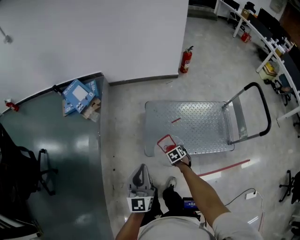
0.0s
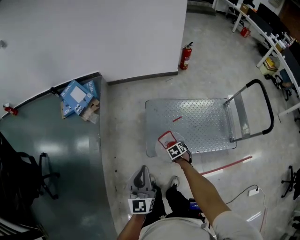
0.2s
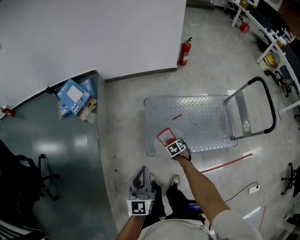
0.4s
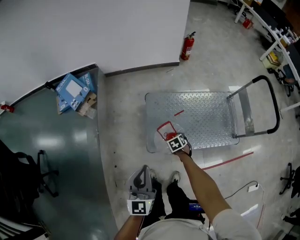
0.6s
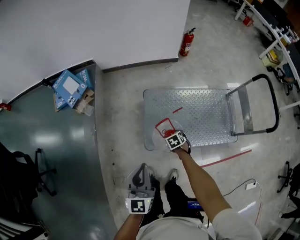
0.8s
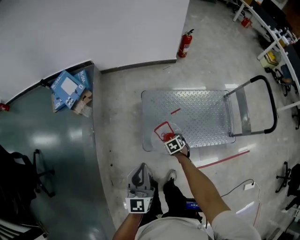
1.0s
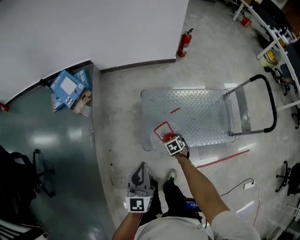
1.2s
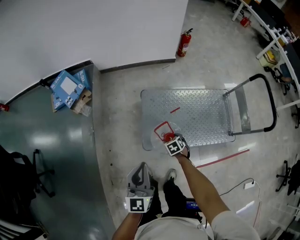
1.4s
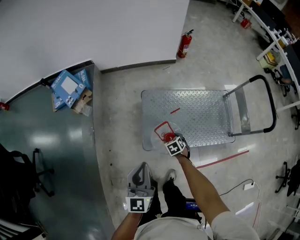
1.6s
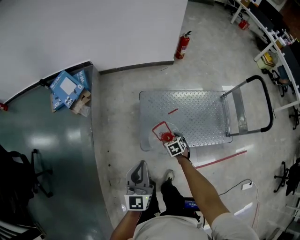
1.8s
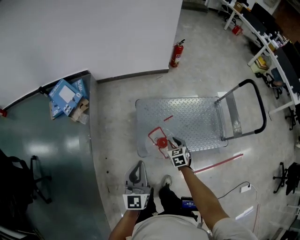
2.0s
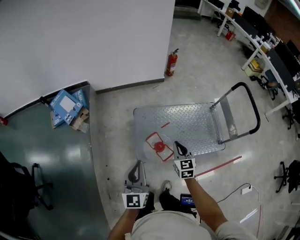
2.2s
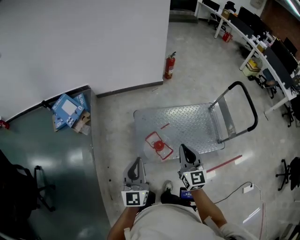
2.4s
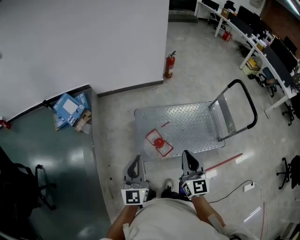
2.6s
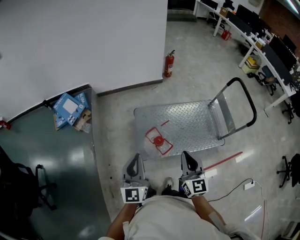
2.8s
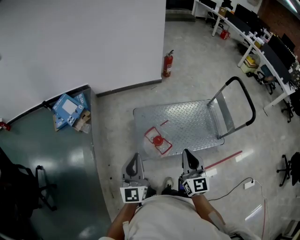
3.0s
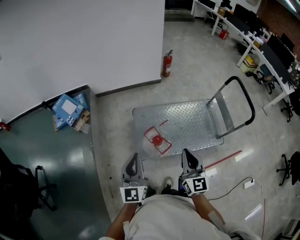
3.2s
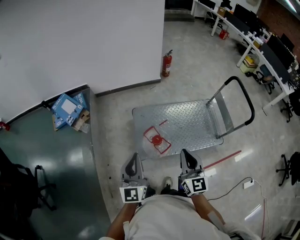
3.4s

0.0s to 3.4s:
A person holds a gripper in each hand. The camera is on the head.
0.0s to 1.6s: Both grippers travel together forward, approximately 5 cm.
1.6s to 3.4s: The left gripper moves upward, some 10 cm, while the right gripper travels upward by about 40 cm, points its fingers approximately 60 degrees further upward, and closes its fingers.

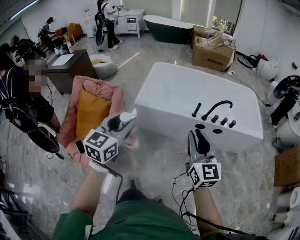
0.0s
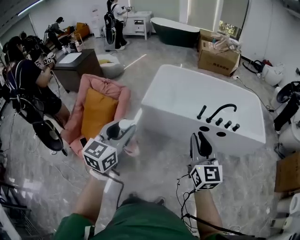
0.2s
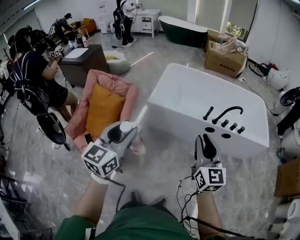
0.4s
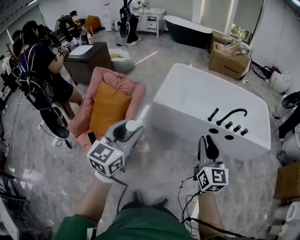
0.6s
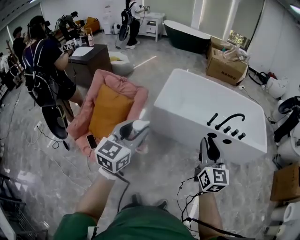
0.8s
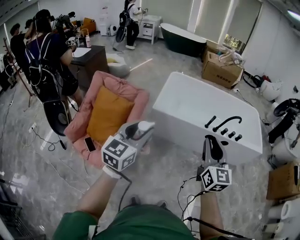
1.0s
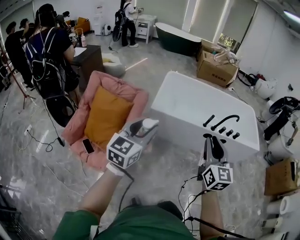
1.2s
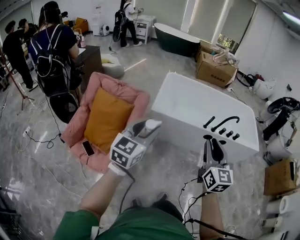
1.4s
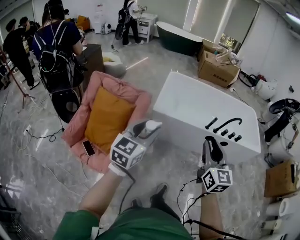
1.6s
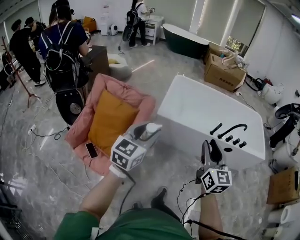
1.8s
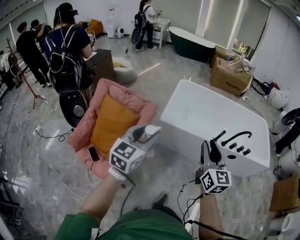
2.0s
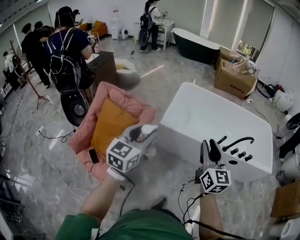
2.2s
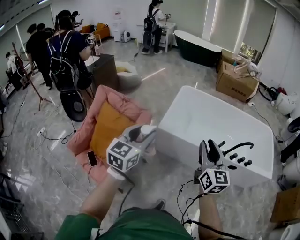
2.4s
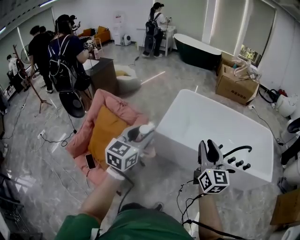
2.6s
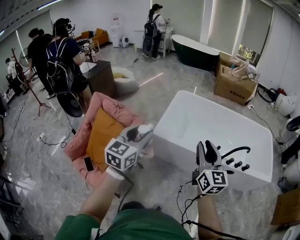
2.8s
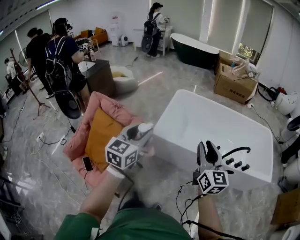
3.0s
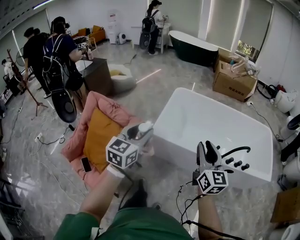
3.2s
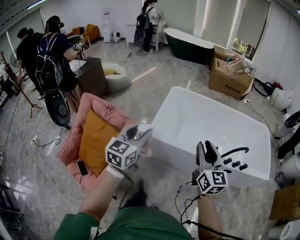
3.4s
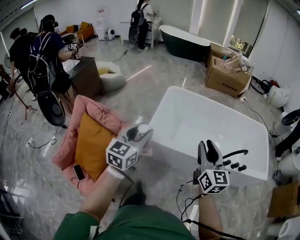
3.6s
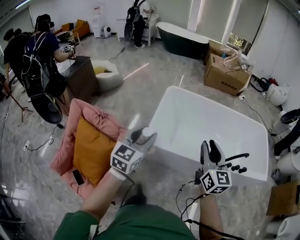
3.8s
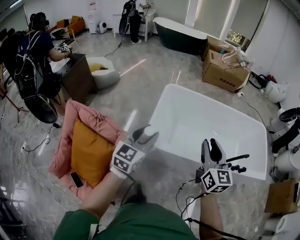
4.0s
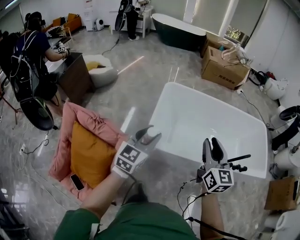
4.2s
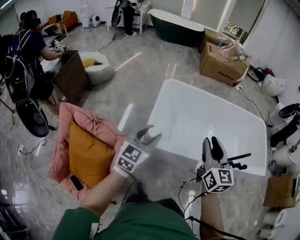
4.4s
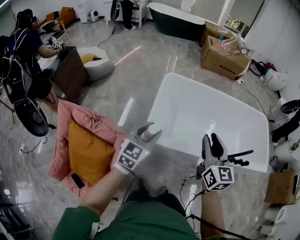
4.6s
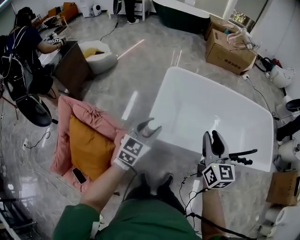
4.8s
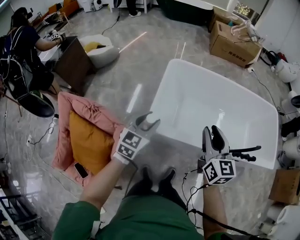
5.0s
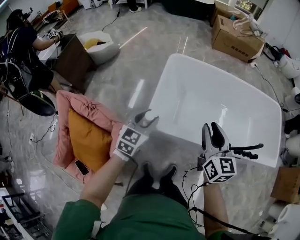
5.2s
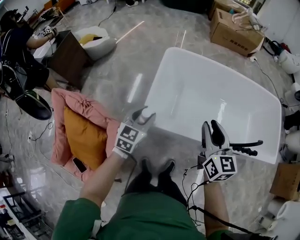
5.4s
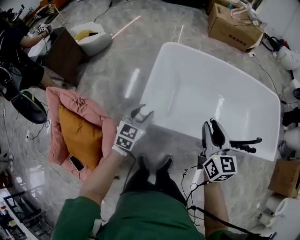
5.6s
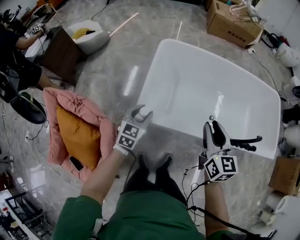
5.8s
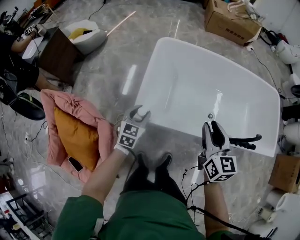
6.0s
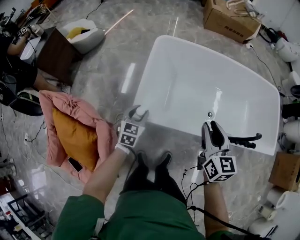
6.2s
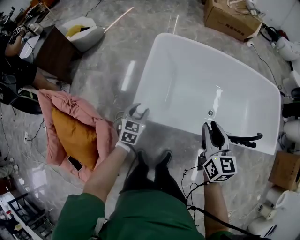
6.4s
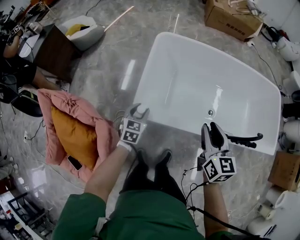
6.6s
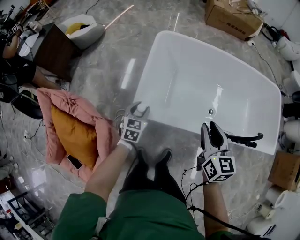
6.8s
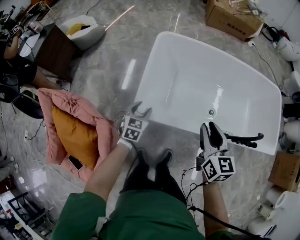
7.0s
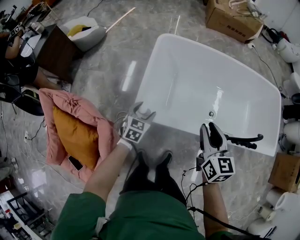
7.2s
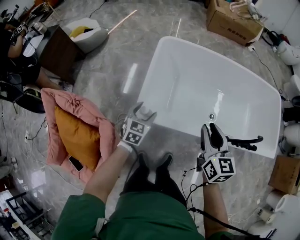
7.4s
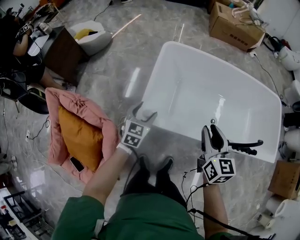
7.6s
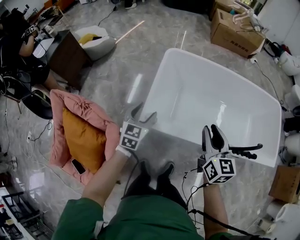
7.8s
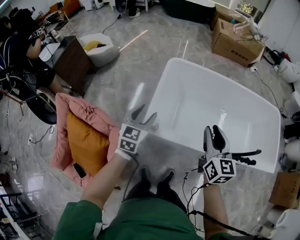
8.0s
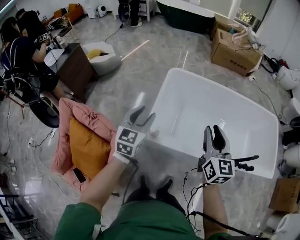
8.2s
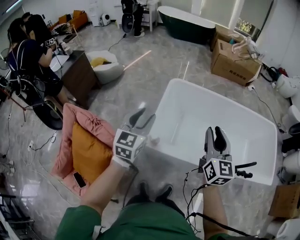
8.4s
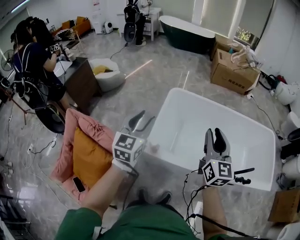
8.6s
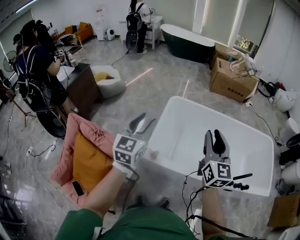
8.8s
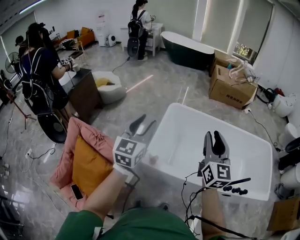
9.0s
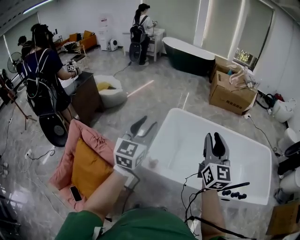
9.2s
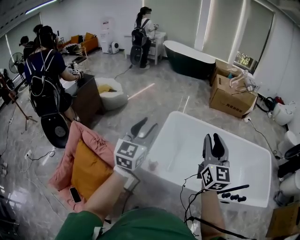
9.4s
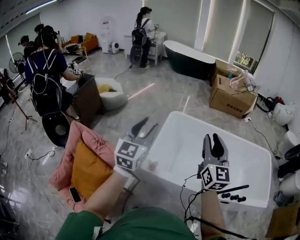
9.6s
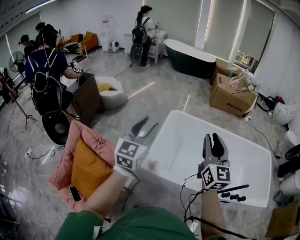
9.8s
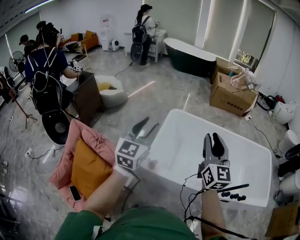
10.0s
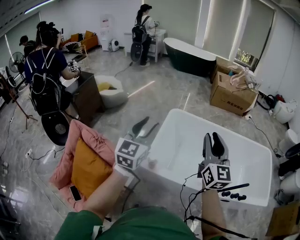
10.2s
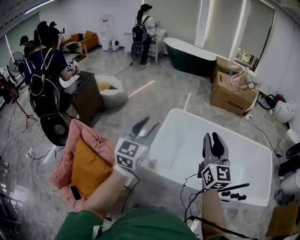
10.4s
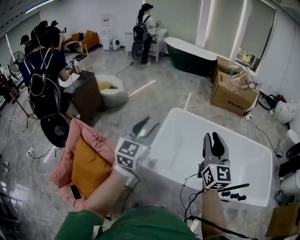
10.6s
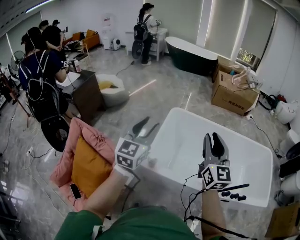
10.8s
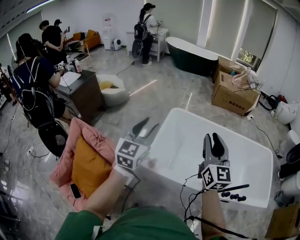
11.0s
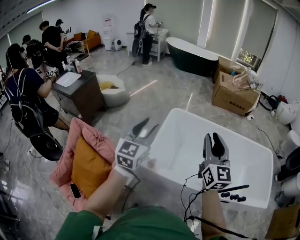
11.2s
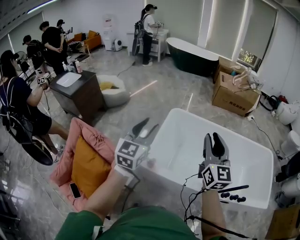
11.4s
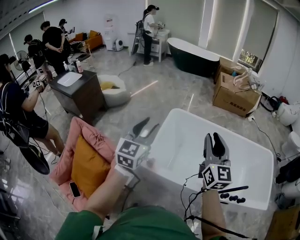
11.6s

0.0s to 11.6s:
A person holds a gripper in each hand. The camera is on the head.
0.0s to 1.4s: Both grippers travel together to the left, roughly 20 cm.
1.4s to 2.8s: Both grippers move forward, roughly 25 cm.
2.8s to 4.4s: Both grippers travel together forward, roughly 35 cm.
4.4s to 5.8s: The right gripper heads downward, forward and to the right, covering roughly 20 cm. Meanwhile the left gripper shifts some 25 cm downward and forward.
5.8s to 7.2s: The left gripper moves downward, about 10 cm, and opens.
7.2s to 8.8s: The left gripper moves upward, some 40 cm, points its fingers some 30 degrees further upward, and closes, while the right gripper heads upward, covering about 25 cm, and rotates about 30 degrees.
8.8s to 10.2s: The right gripper moves roughly 5 cm; the left gripper is displaced upward by roughly 5 cm.
10.2s to 11.6s: There are only small adjustments of the grippers.

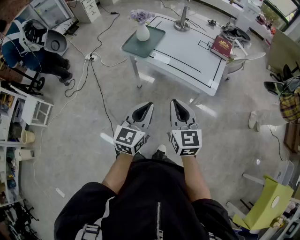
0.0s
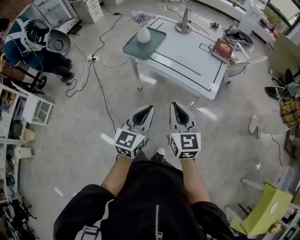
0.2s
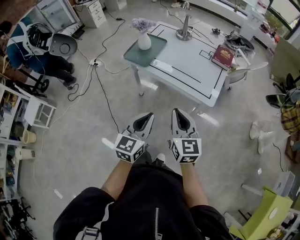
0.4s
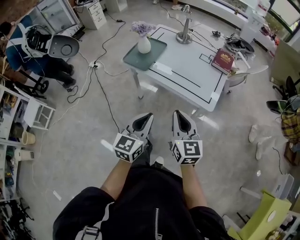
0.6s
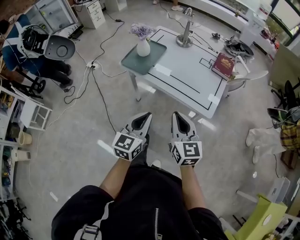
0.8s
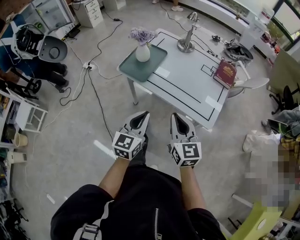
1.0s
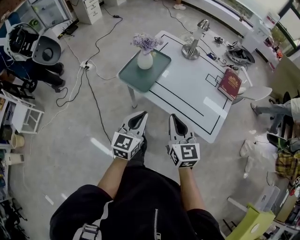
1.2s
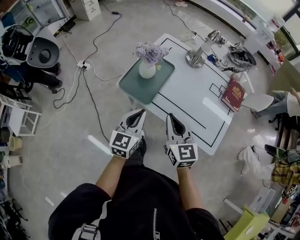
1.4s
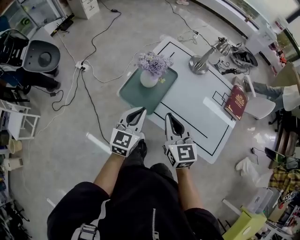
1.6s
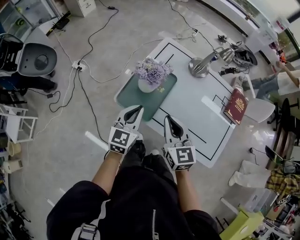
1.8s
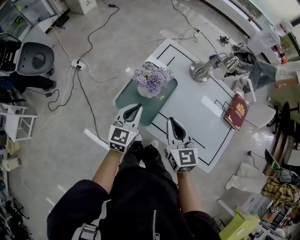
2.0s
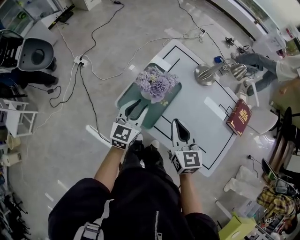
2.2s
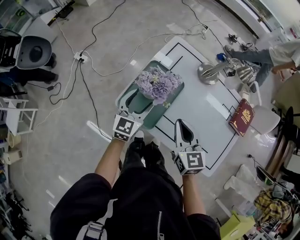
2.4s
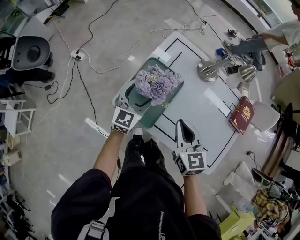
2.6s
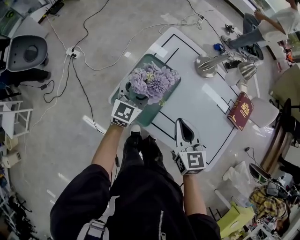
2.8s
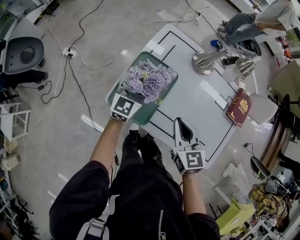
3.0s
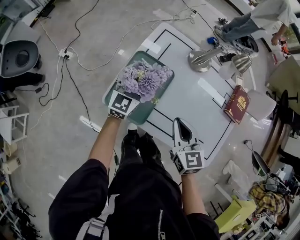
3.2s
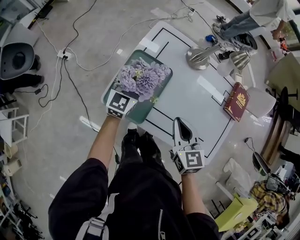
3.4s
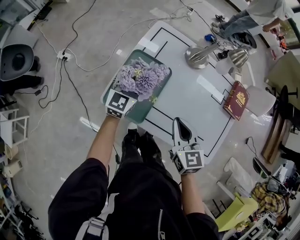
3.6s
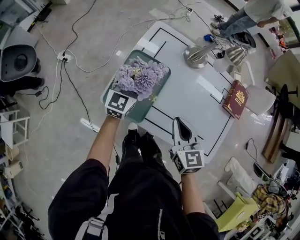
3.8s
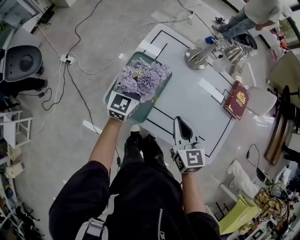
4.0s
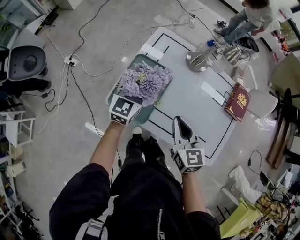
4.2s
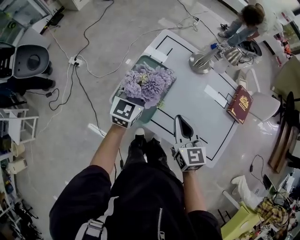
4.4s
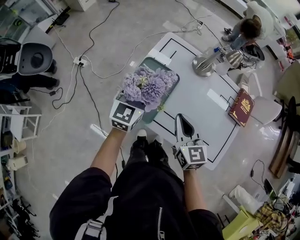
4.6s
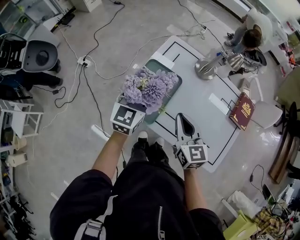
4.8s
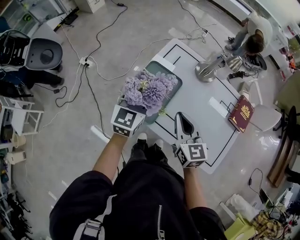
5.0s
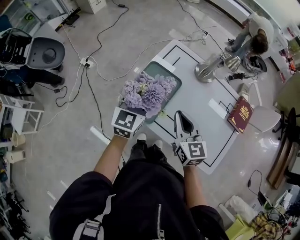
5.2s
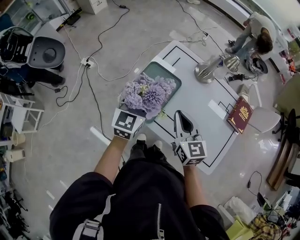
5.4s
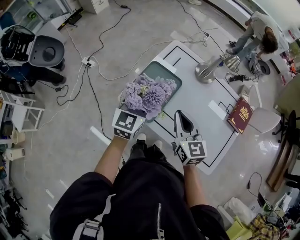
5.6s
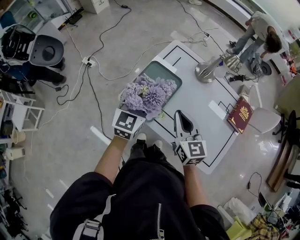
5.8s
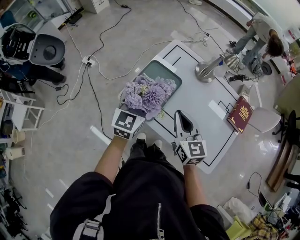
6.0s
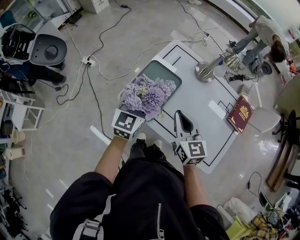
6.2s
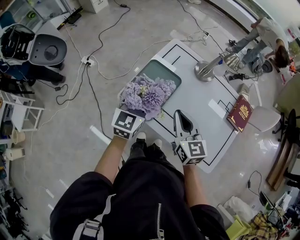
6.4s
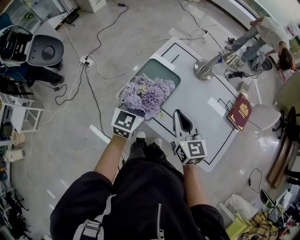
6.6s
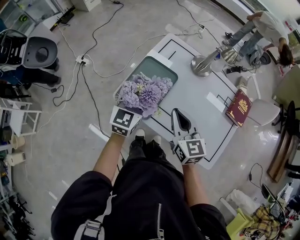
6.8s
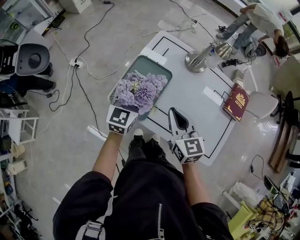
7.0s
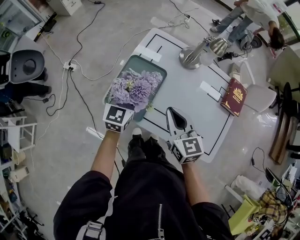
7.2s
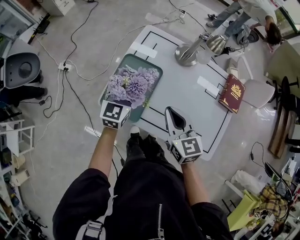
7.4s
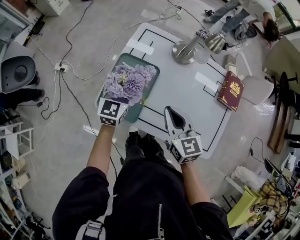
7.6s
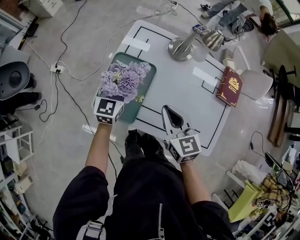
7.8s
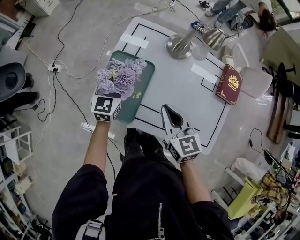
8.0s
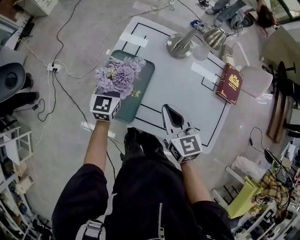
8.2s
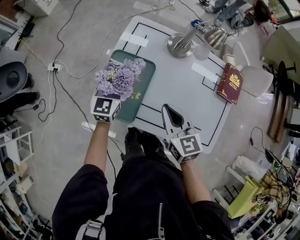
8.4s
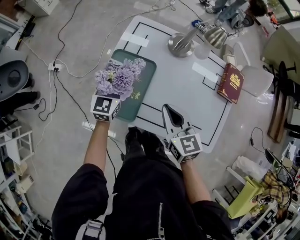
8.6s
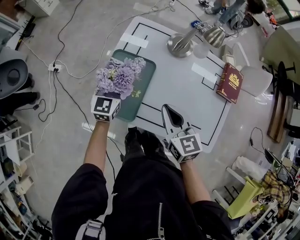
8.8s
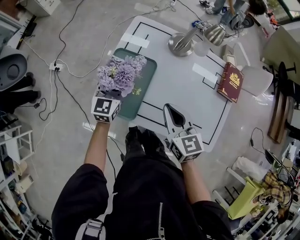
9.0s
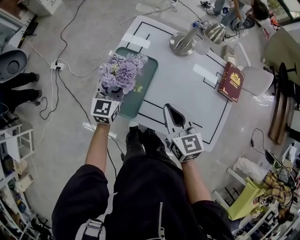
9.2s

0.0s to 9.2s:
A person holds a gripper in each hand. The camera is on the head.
0.0s to 1.6s: The pair of grippers is taken forward, approximately 40 cm.
1.6s to 3.0s: The right gripper heads forward and downward, covering about 10 cm, while the left gripper heads forward, covering some 25 cm, and opens.
3.0s to 4.6s: The left gripper shifts approximately 10 cm upward.
4.6s to 6.2s: The left gripper travels backward by about 5 cm.
6.2s to 7.6s: The left gripper moves forward and downward, about 15 cm. Meanwhile the right gripper ends up roughly 5 cm from where it was.
7.6s to 9.2s: The grippers stay close to where they were, moving slightly.
